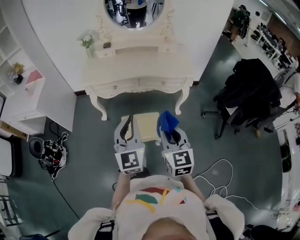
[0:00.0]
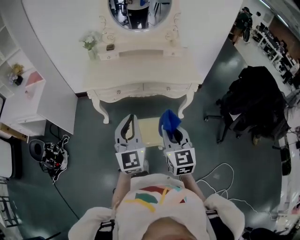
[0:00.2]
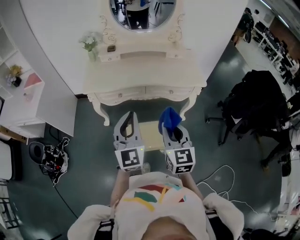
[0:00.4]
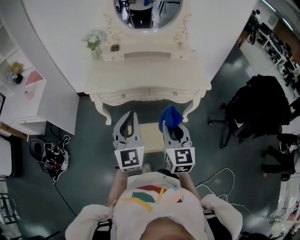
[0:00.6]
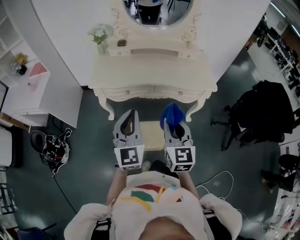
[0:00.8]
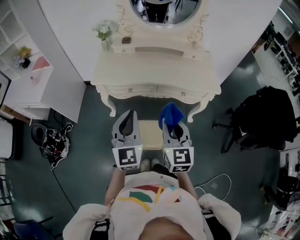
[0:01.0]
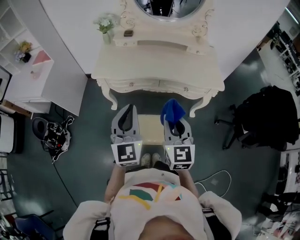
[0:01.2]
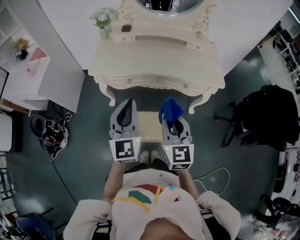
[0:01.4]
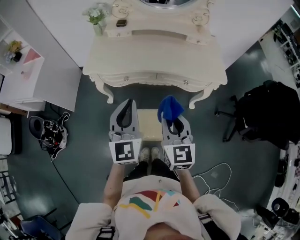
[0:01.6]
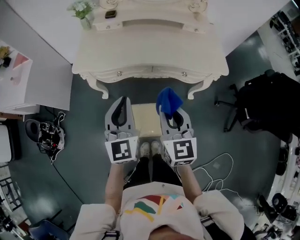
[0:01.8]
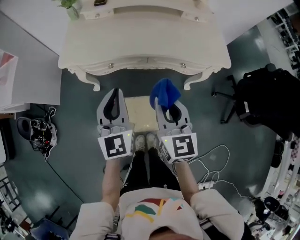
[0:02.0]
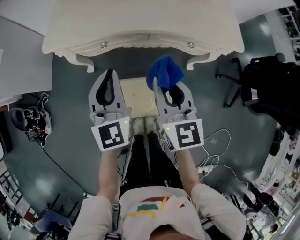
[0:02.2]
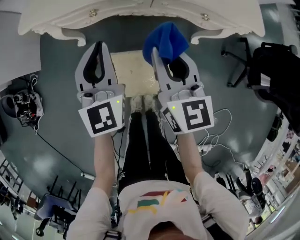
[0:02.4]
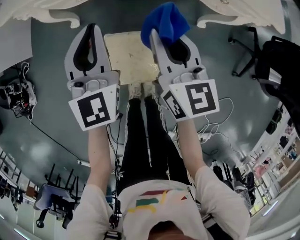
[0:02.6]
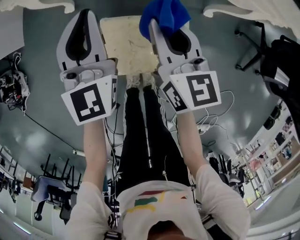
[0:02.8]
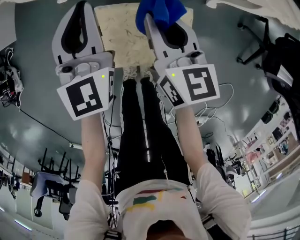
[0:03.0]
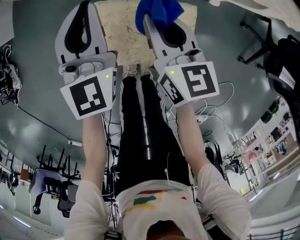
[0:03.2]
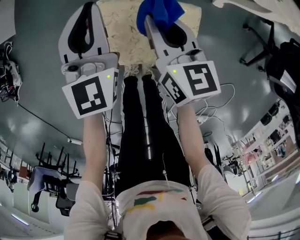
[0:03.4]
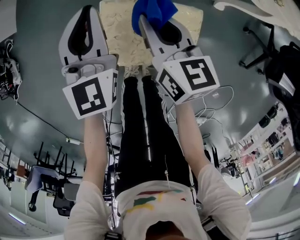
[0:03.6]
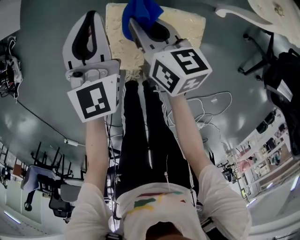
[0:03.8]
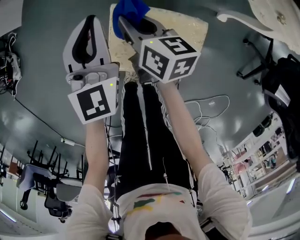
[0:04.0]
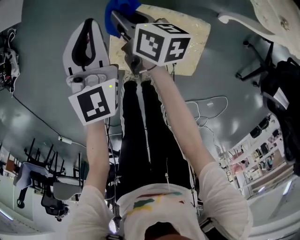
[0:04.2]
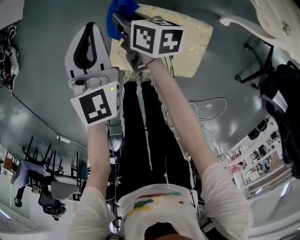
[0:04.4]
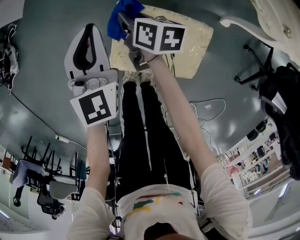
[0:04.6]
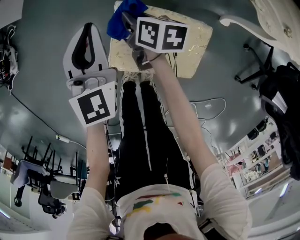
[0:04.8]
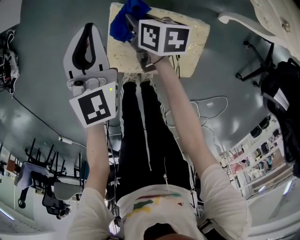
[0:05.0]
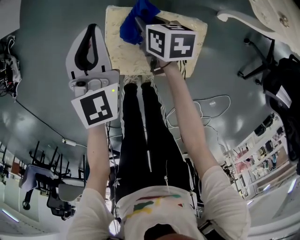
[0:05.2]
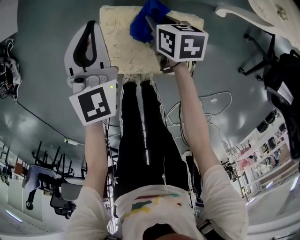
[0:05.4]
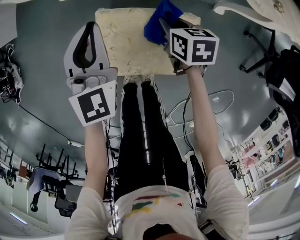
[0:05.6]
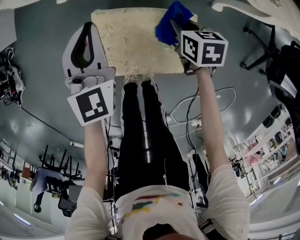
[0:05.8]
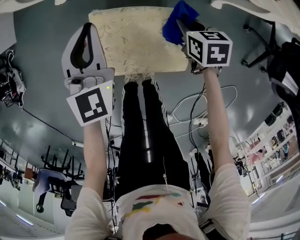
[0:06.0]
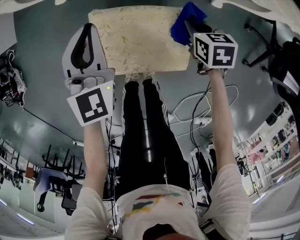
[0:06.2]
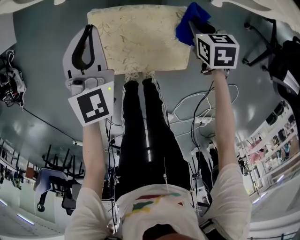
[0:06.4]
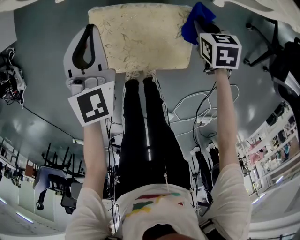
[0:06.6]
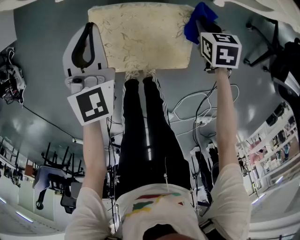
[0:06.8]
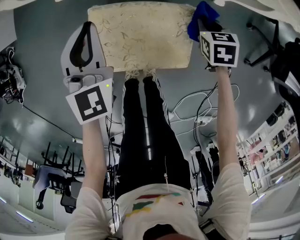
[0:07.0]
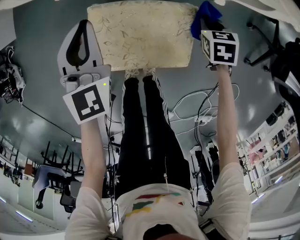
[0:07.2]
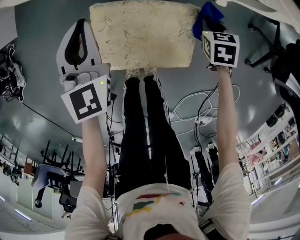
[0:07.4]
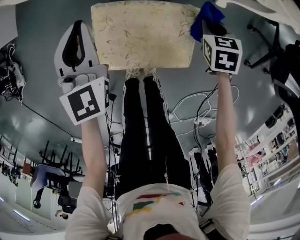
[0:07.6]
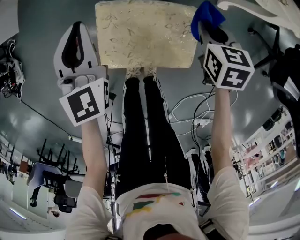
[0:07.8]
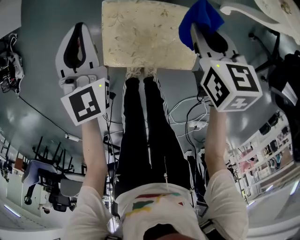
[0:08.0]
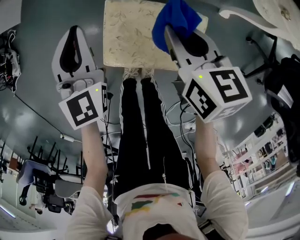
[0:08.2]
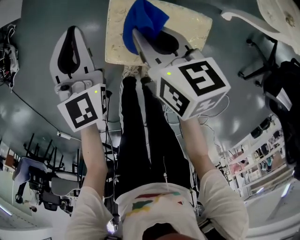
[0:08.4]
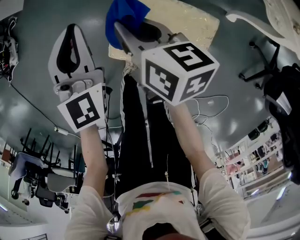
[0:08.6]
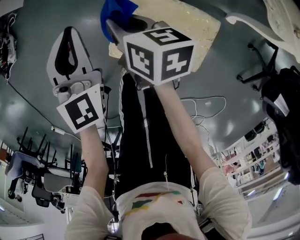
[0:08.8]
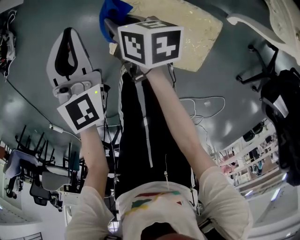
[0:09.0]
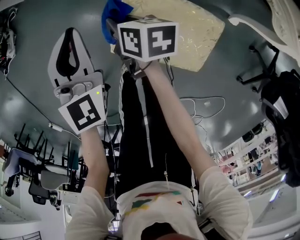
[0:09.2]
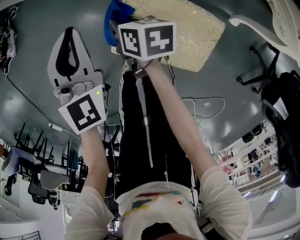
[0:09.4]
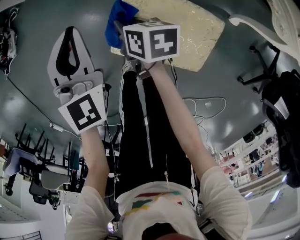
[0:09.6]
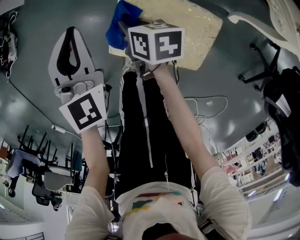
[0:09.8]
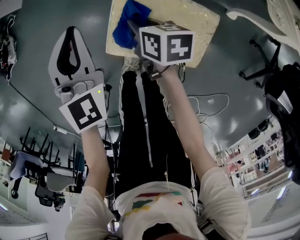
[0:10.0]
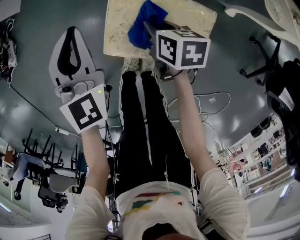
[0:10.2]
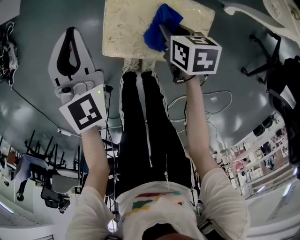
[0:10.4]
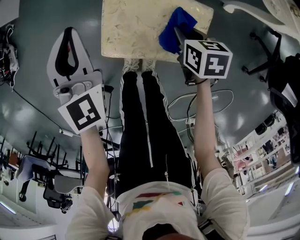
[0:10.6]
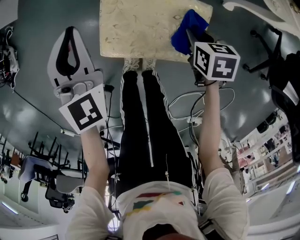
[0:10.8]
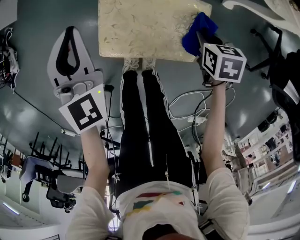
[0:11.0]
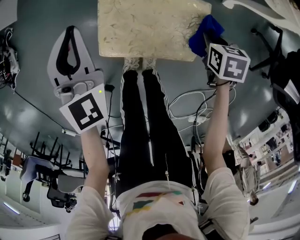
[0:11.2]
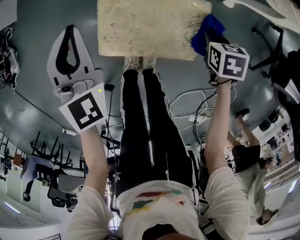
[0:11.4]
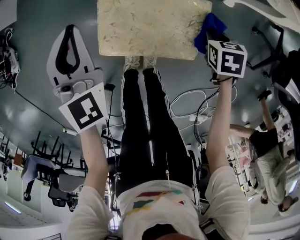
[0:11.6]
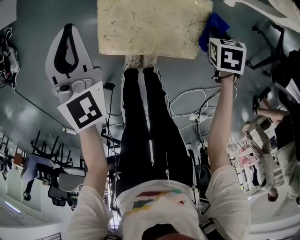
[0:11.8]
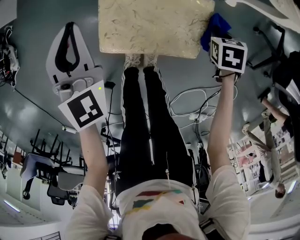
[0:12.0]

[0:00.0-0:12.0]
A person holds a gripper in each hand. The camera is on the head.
0:00.0 to 0:01.6: Both grippers move forward, roughly 20 cm.
0:01.6 to 0:03.0: The two grippers go some 40 cm downward. The right gripper changes its angle by some 20 degrees.
0:03.0 to 0:04.4: The left gripper goes some 10 cm to the left and downward. Meanwhile the right gripper heads downward and to the left, covering roughly 20 cm, and rotates about 40 degrees.
0:04.4 to 0:06.0: The left gripper shifts roughly 10 cm to the right, while the right gripper is displaced to the right and backward by approximately 30 cm, and turns by approximately 30 degrees.
0:06.0 to 0:07.6: The right gripper heads to the right, covering about 5 cm.
0:07.6 to 0:09.0: The left gripper changes place by some 15 cm. The right gripper moves about 15 cm upward and comes back, and changes its angle by about 50 degrees.
0:09.0 to 0:10.4: The right gripper is displaced to the right and backward by about 20 cm, and changes its angle by about 20 degrees.
0:10.4 to 0:12.0: The right gripper ends up about 20 cm from where it was, and rotates about 30 degrees.

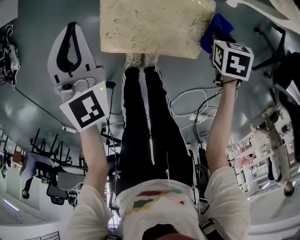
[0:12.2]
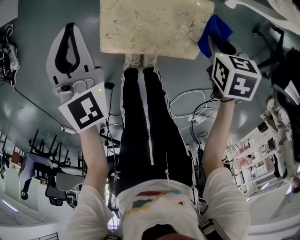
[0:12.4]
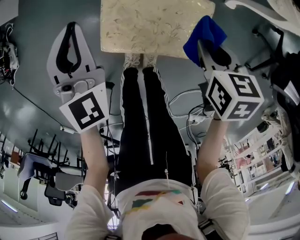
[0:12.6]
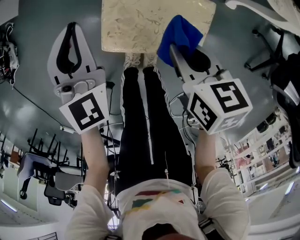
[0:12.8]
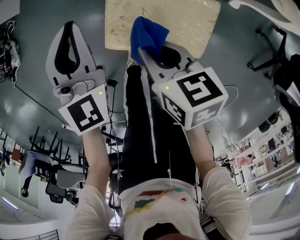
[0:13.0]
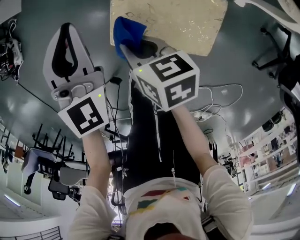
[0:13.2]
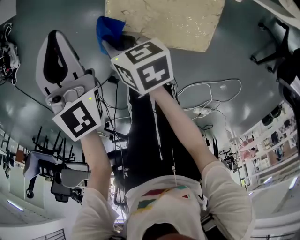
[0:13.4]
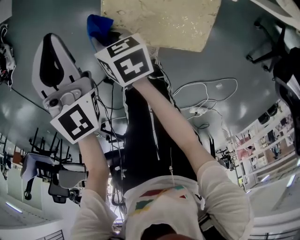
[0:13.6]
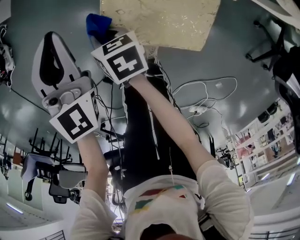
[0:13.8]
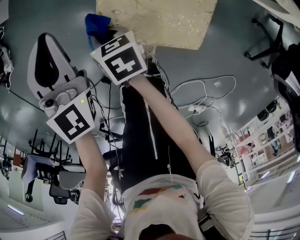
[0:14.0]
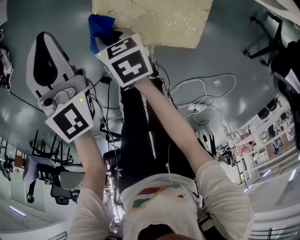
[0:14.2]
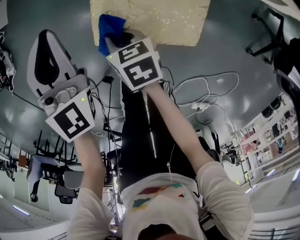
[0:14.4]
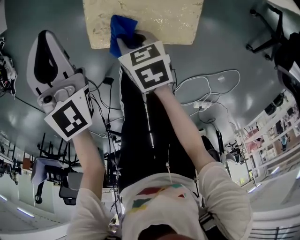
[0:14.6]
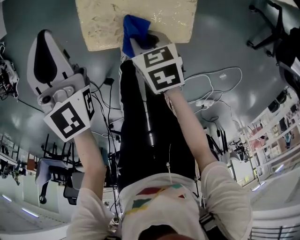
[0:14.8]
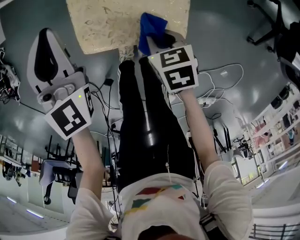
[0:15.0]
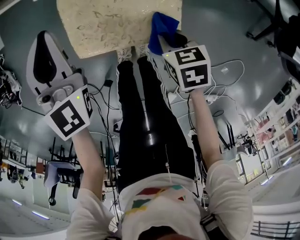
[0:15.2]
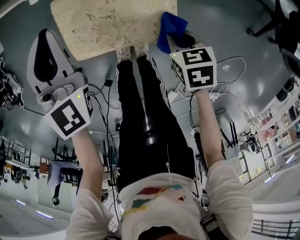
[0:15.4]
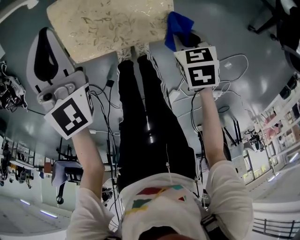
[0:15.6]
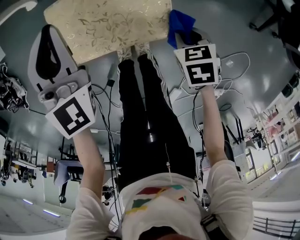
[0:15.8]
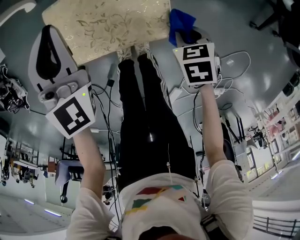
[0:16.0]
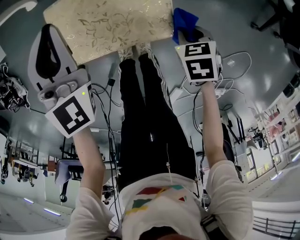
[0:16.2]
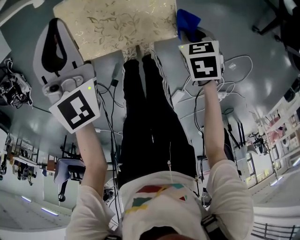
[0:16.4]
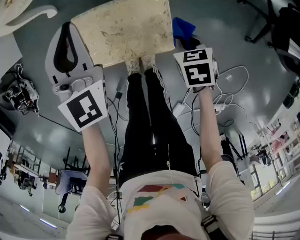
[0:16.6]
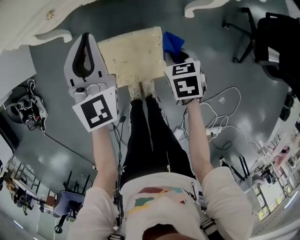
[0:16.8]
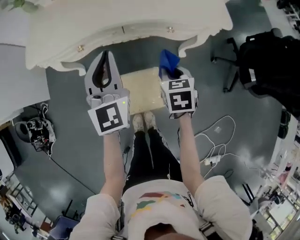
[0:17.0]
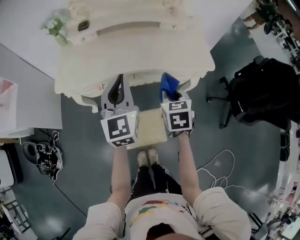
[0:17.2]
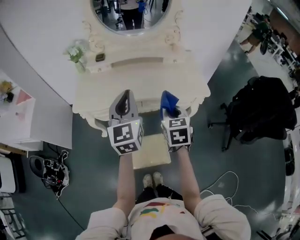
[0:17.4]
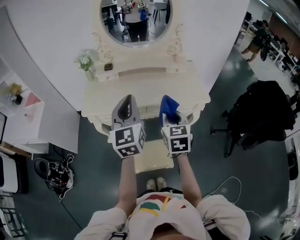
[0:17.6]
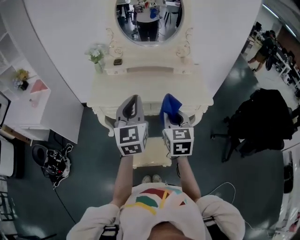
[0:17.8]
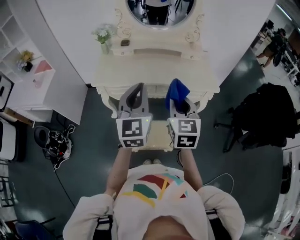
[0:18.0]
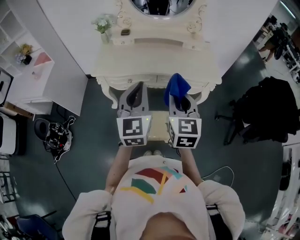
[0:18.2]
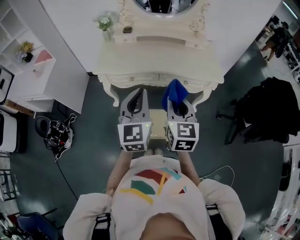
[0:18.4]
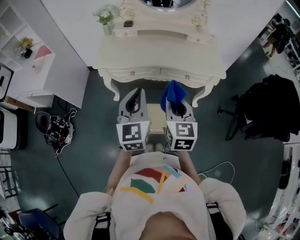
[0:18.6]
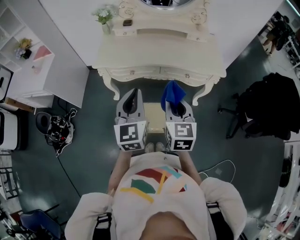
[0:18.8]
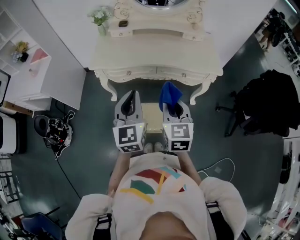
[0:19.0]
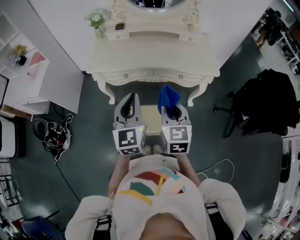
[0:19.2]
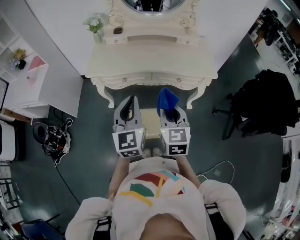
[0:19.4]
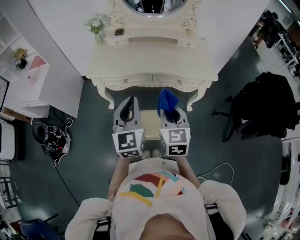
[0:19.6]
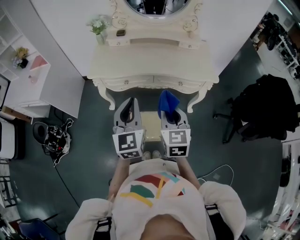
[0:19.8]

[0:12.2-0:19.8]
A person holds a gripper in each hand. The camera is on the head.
0:12.2 to 0:13.8: The left gripper shifts by approximately 5 cm. The right gripper goes upward and returns, approximately 10 cm each way, and points its fingers about 30 degrees further upward.
0:13.8 to 0:15.2: The right gripper shifts roughly 30 cm to the right and backward, and rotates roughly 20 degrees; the left gripper is displaced to the right by approximately 10 cm.
0:15.2 to 0:16.8: Both grippers move upward, roughly 20 cm.
0:16.8 to 0:18.2: The grippers both shift upward by some 40 cm. The right gripper angles its fingers upward, by about 50 degrees.
0:18.2 to 0:19.8: Both grippers move downward, roughly 5 cm.

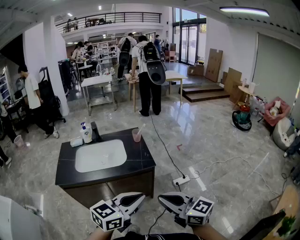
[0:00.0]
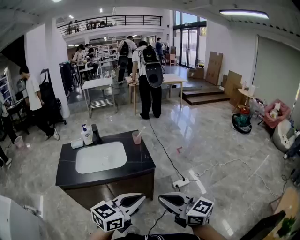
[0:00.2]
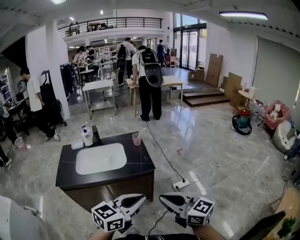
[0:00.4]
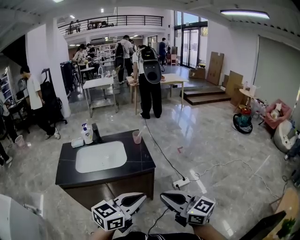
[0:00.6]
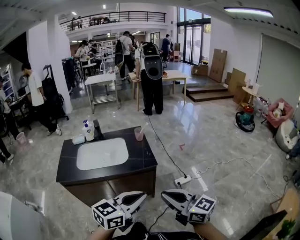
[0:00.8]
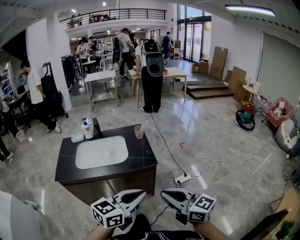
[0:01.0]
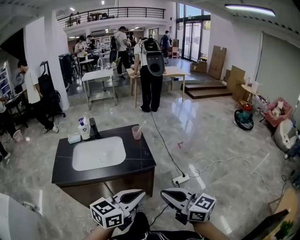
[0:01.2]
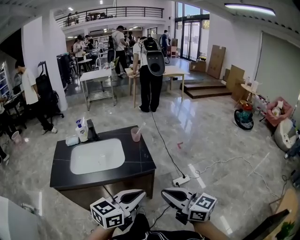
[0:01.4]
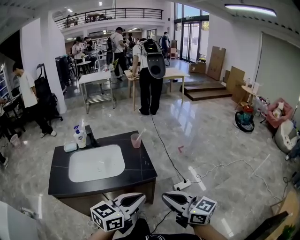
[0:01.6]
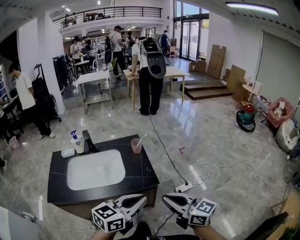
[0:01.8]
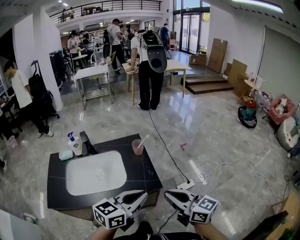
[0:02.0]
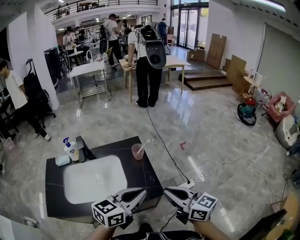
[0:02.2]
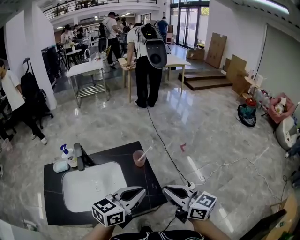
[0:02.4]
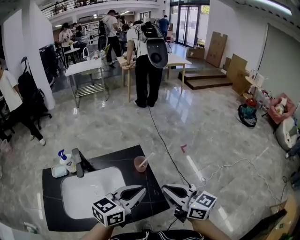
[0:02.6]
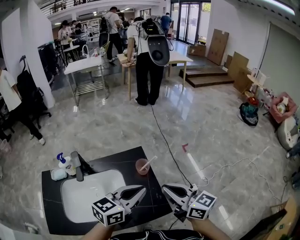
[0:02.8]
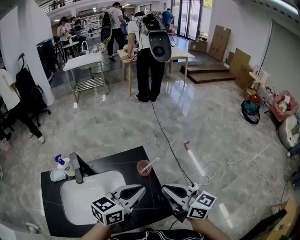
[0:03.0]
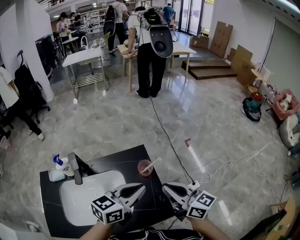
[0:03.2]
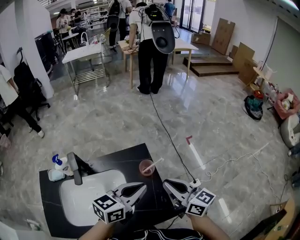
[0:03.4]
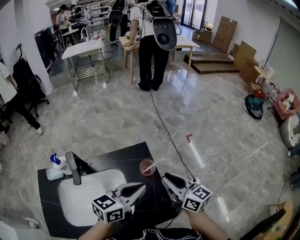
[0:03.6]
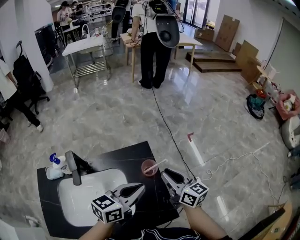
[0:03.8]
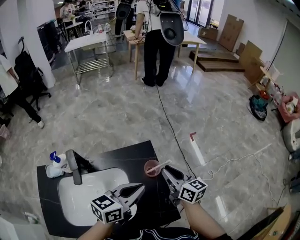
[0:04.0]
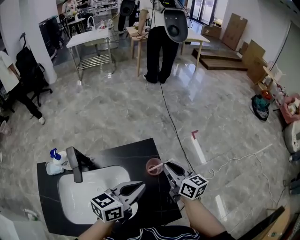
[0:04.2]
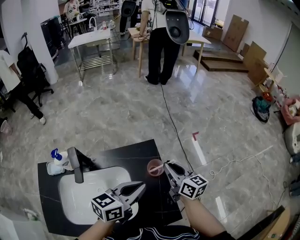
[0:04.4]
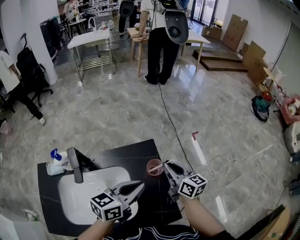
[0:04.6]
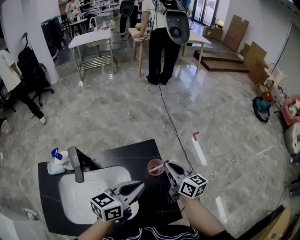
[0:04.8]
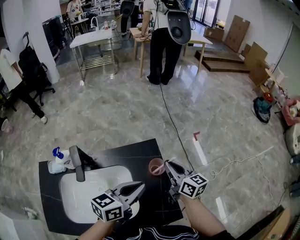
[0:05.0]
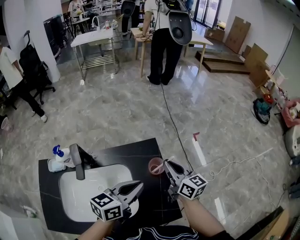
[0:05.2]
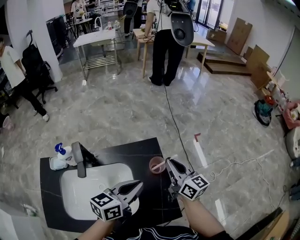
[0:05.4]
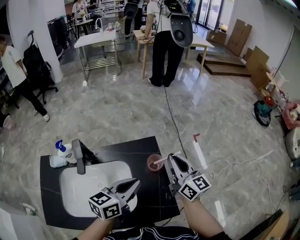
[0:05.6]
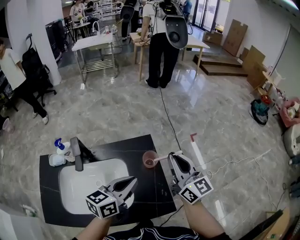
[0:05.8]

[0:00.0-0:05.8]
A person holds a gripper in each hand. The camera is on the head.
0:00.0 to 0:01.4: Both grippers travel together forward, some 5 cm.
0:01.4 to 0:02.8: The grippers both shift forward by approximately 30 cm.
0:02.8 to 0:04.4: The left gripper moves downward, forward and to the left, about 10 cm; the right gripper travels forward and downward by about 20 cm.
0:04.4 to 0:05.8: The right gripper heads upward, covering roughly 15 cm, and swivels about 30 degrees.
